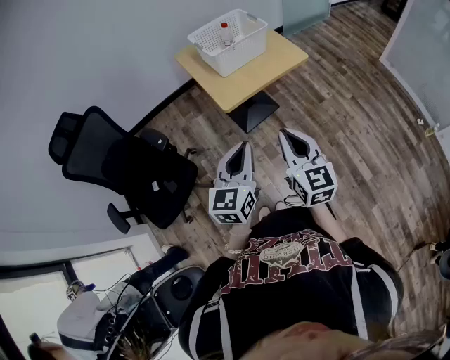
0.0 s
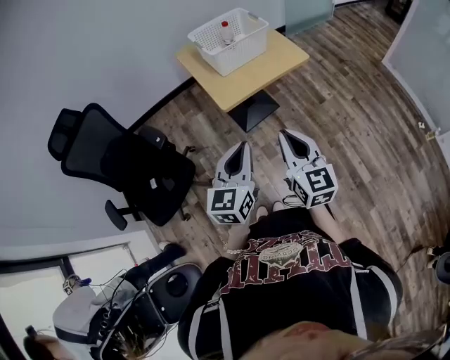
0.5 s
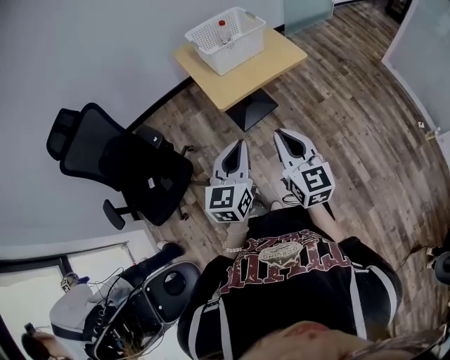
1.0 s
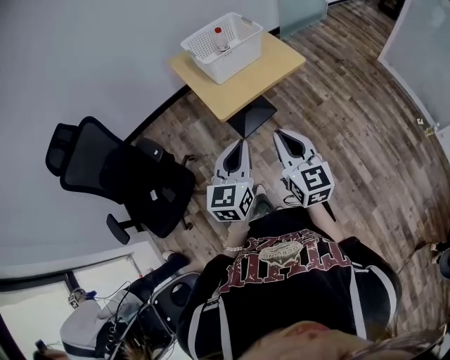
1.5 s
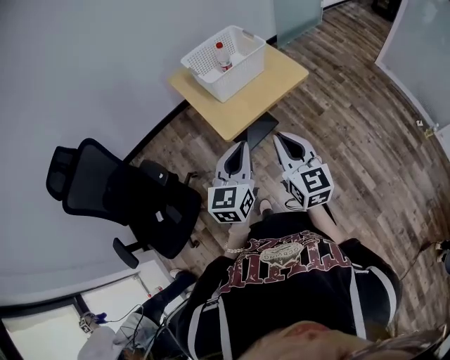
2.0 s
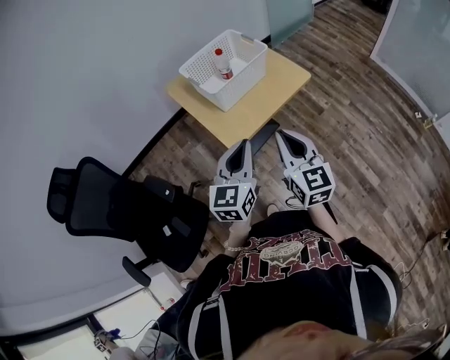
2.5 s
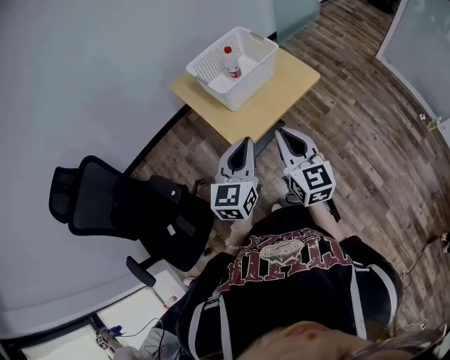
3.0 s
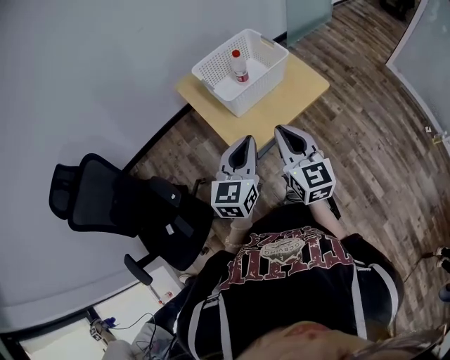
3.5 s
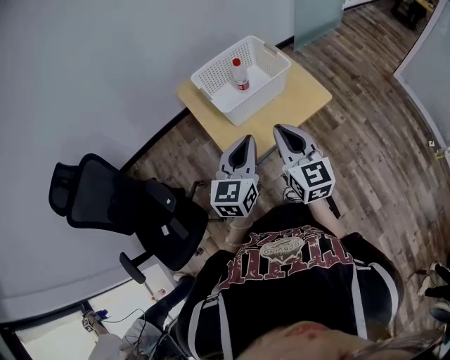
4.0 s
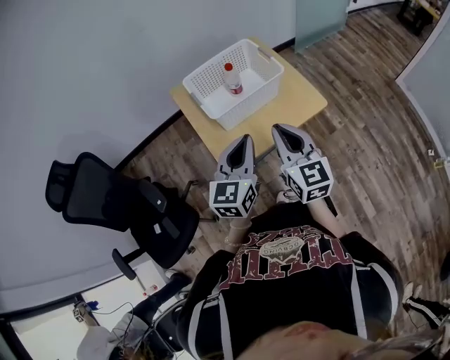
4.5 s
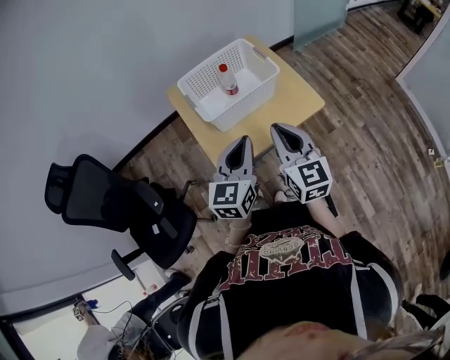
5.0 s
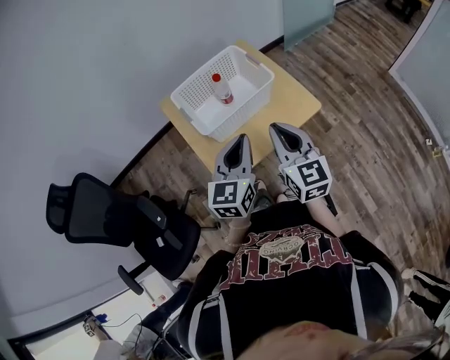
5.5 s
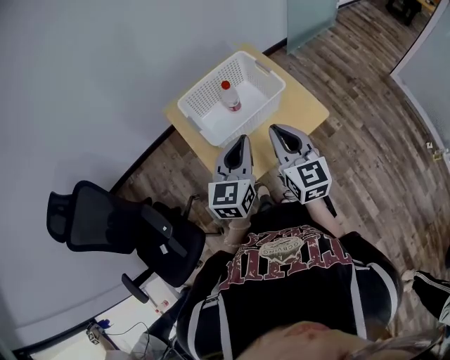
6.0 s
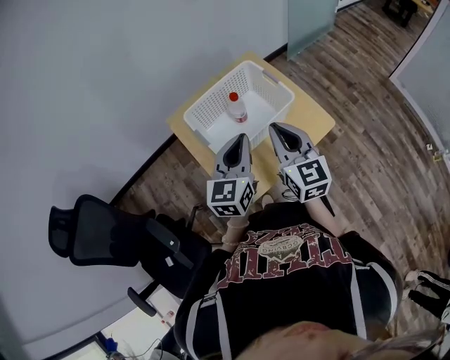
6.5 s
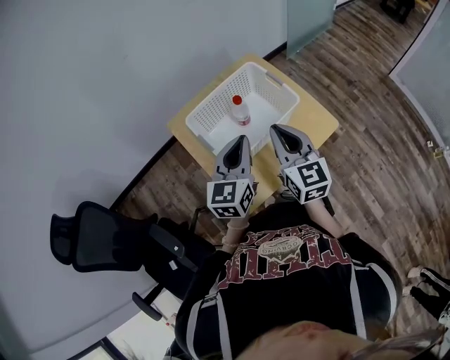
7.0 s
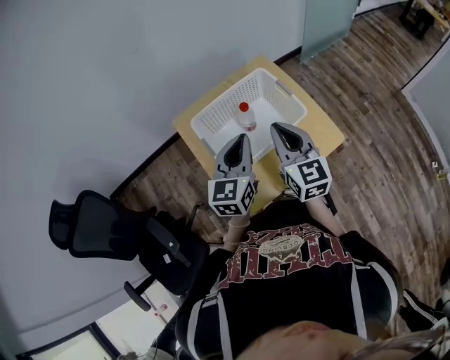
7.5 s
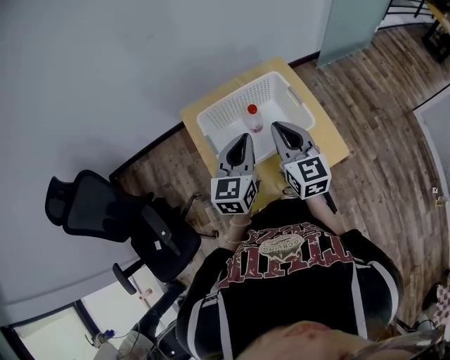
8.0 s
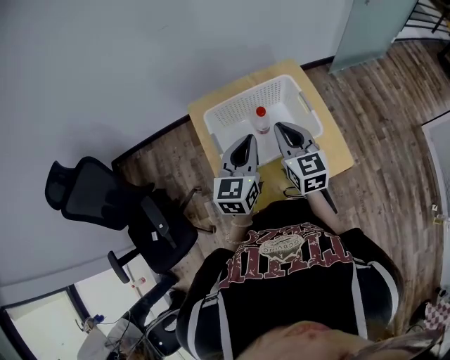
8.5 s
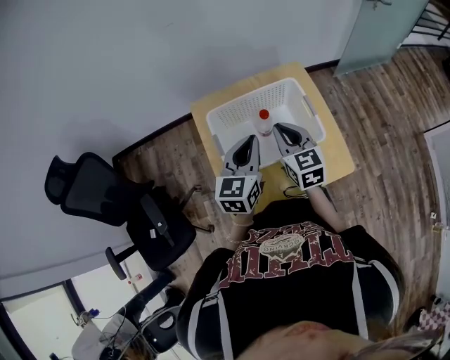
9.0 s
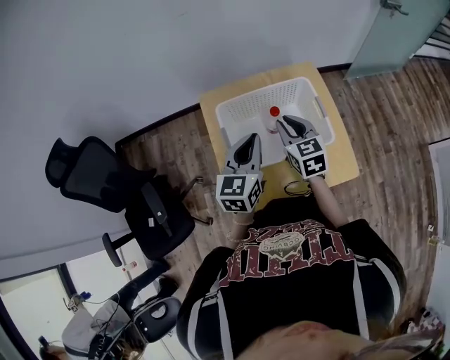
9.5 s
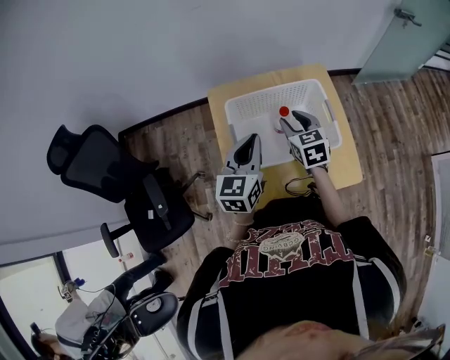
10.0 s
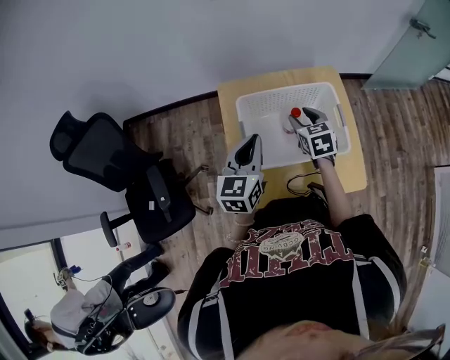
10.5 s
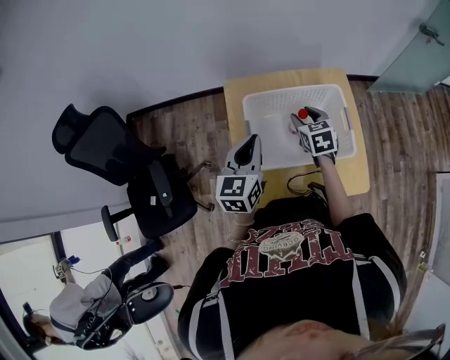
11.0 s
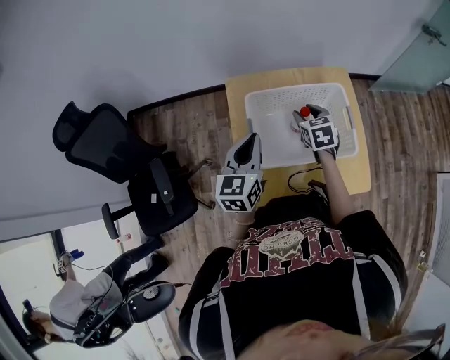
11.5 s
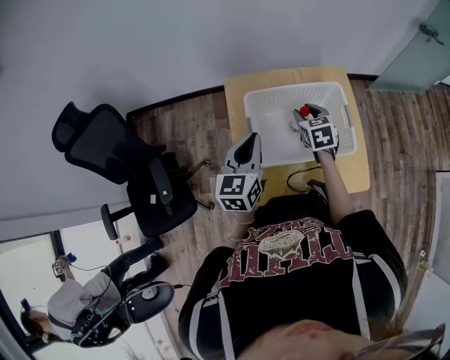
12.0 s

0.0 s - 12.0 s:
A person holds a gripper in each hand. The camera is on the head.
0.0 s - 2.0 s: Both grippers move forward, some 15 cm.
2.0 s - 4.0 s: Both grippers travel together forward, roughly 20 cm.
4.0 s - 6.0 s: Both grippers travel together forward, some 10 cm.
6.0 s - 8.0 s: Both grippers move forward, about 15 cm.
8.0 s - 10.0 s: The left gripper moves to the left, about 5 cm; the right gripper travels downward and forward by some 15 cm, turns by approximately 30 degrees, and opens.
10.0 s - 12.0 s: The right gripper changes place by some 5 cm; the left gripper travels to the left by some 5 cm.

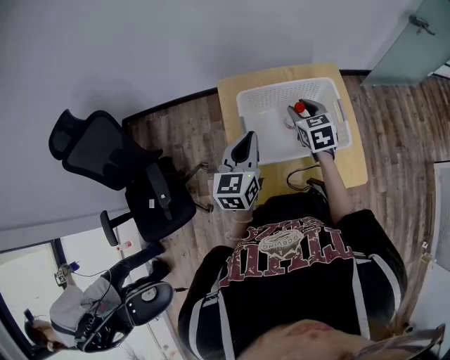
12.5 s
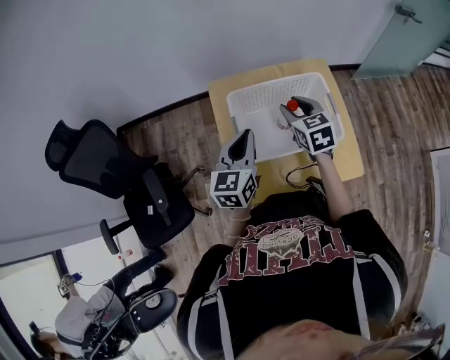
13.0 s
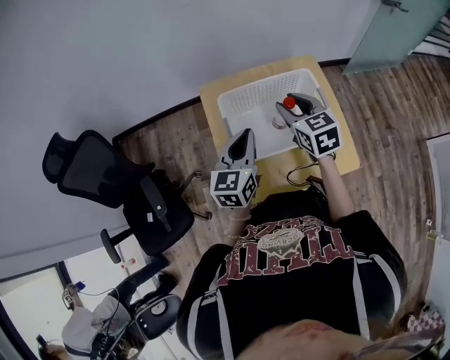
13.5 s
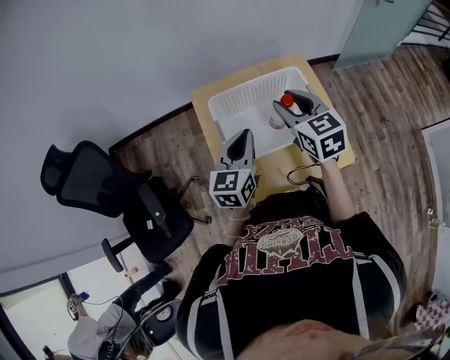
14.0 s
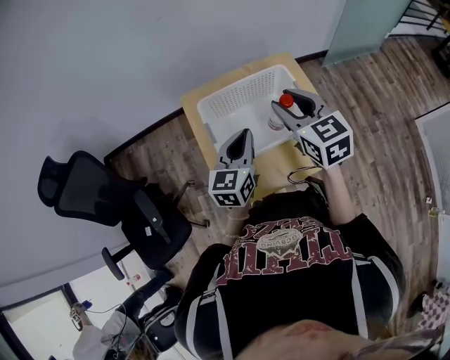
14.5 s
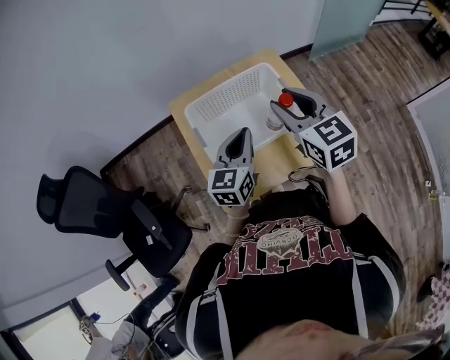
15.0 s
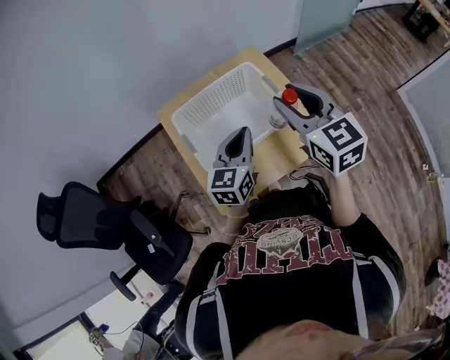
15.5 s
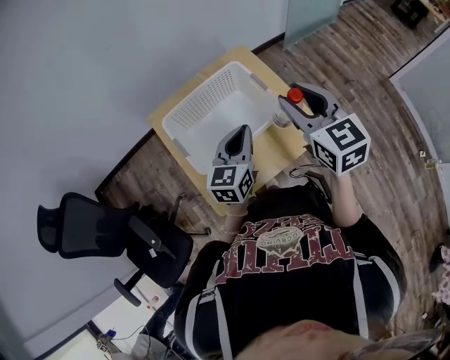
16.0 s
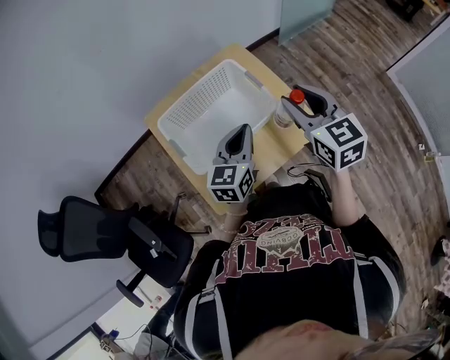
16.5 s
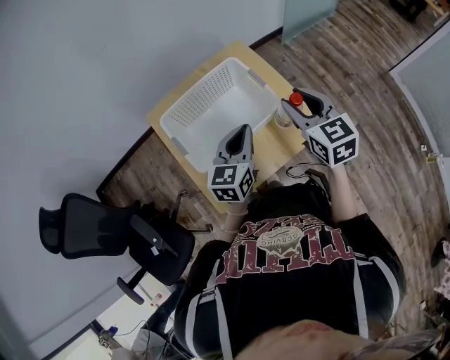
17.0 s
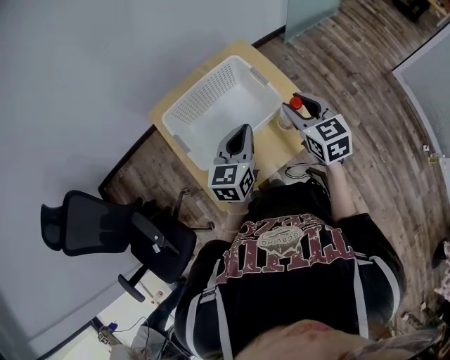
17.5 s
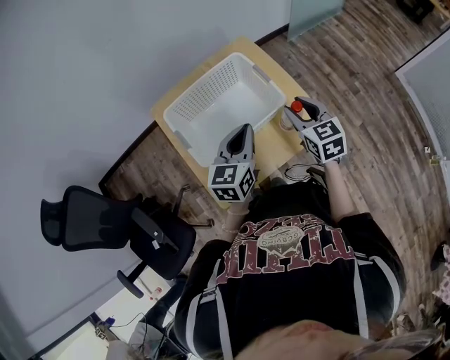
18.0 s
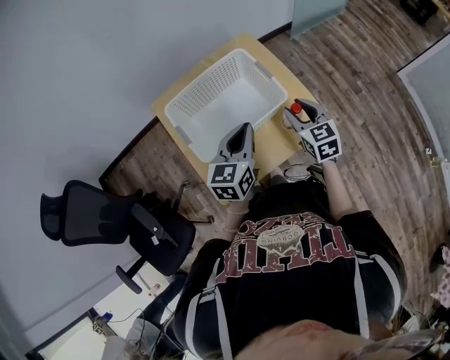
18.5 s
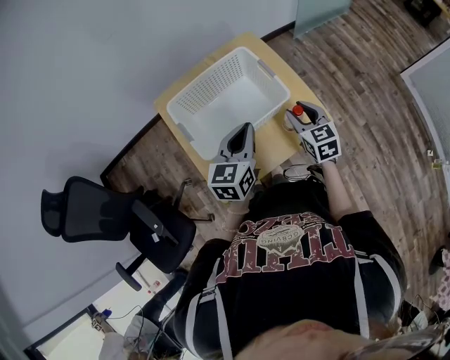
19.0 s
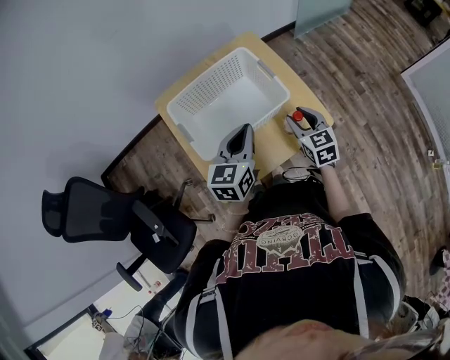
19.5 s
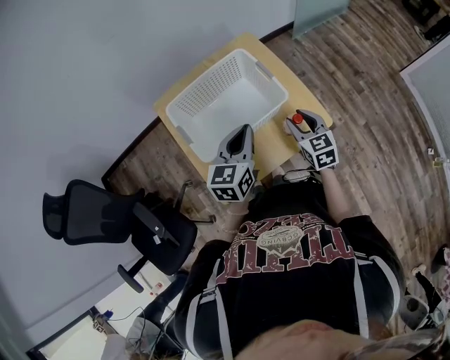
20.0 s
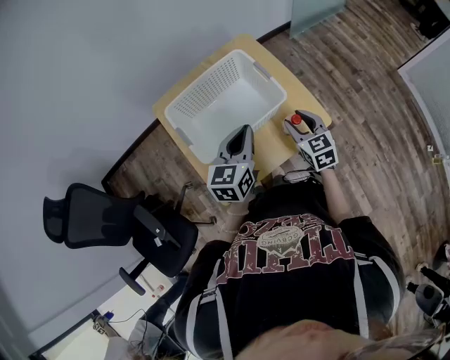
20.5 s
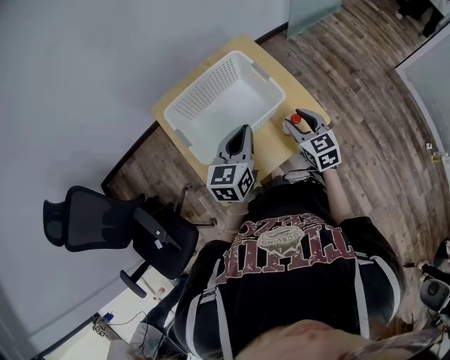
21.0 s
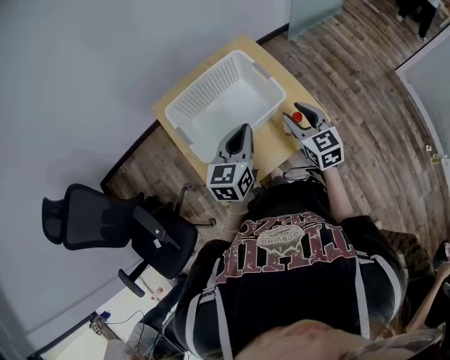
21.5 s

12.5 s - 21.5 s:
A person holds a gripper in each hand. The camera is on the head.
12.5 s - 14.5 s: The left gripper moves to the right, approximately 10 cm. The right gripper shifts roughly 20 cm upward and backward.
14.5 s - 17.0 s: Both grippers travel together to the right, roughly 15 cm.
17.0 s - 19.5 s: The right gripper goes about 15 cm downward.
19.5 s - 21.5 s: The right gripper heads upward, covering some 5 cm.

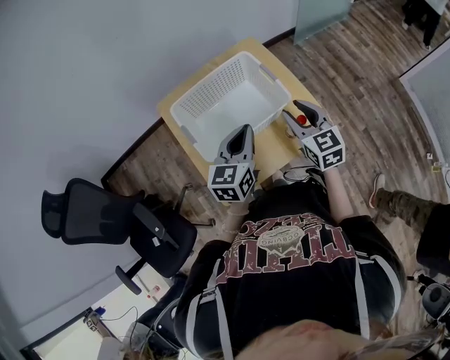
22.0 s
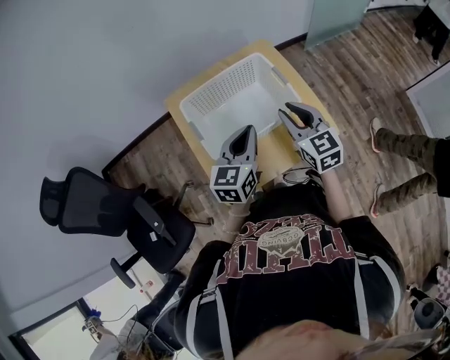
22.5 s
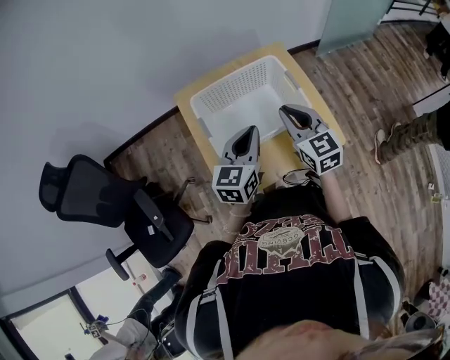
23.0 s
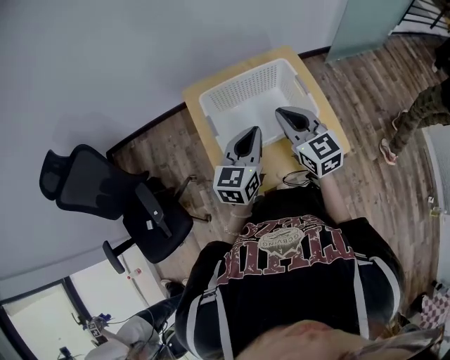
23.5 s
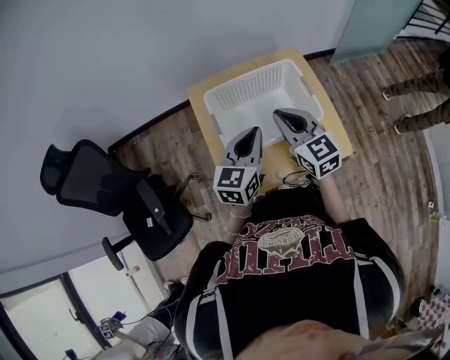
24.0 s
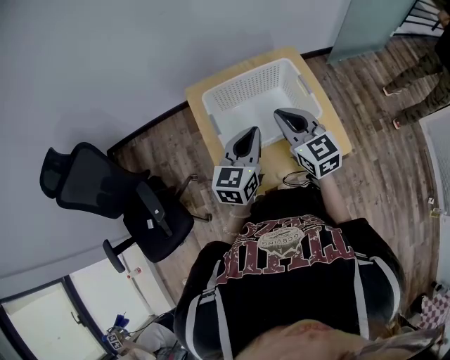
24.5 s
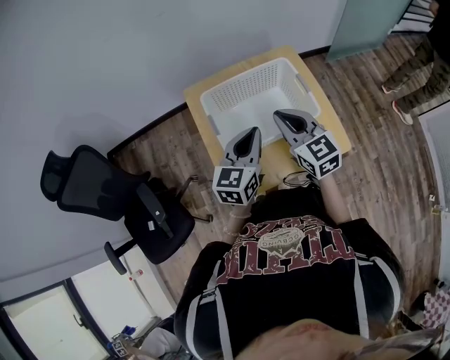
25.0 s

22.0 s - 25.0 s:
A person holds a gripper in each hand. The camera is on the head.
22.0 s - 23.5 s: The left gripper is displaced to the left by approximately 5 cm, while the right gripper is displaced to the left by about 10 cm, and closes up.
23.5 s - 25.0 s: There are only small adjustments of the grippers.

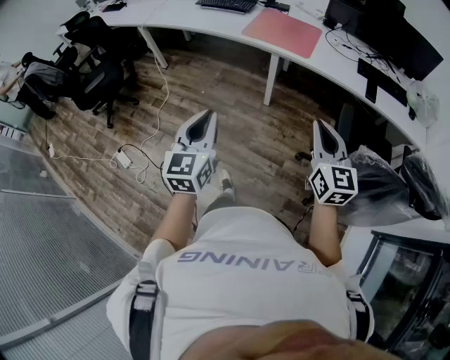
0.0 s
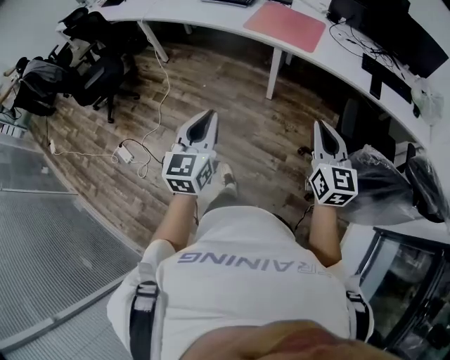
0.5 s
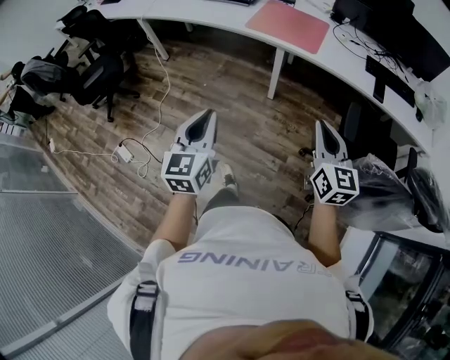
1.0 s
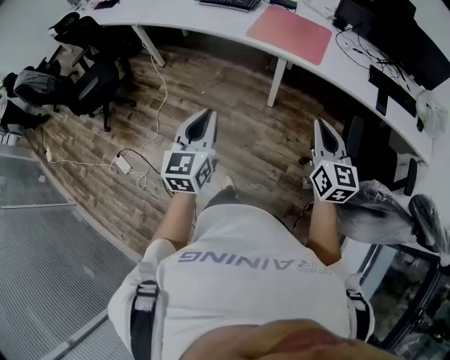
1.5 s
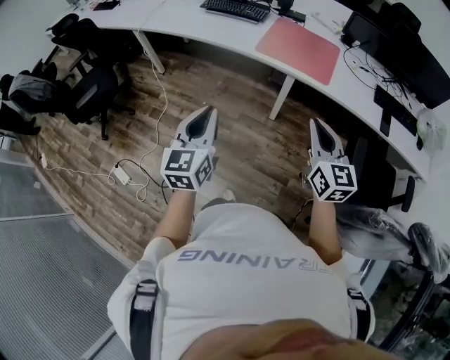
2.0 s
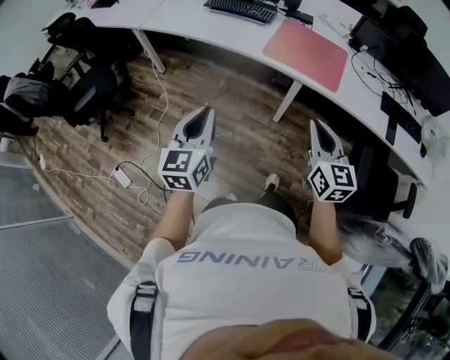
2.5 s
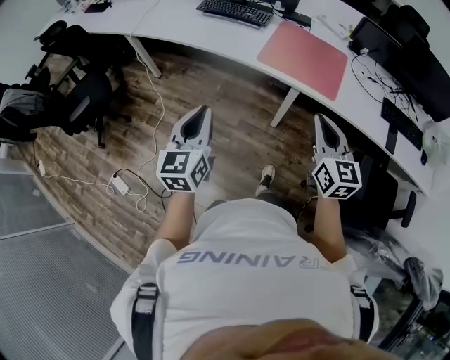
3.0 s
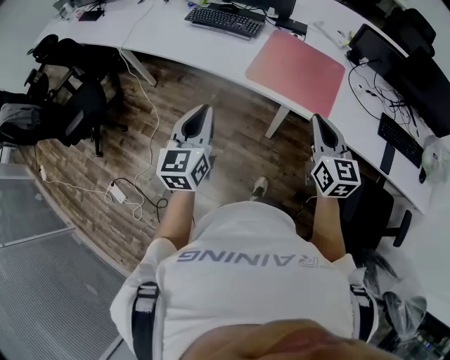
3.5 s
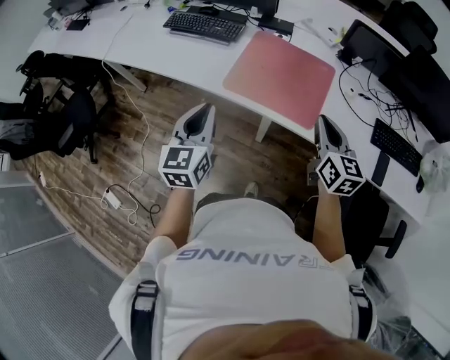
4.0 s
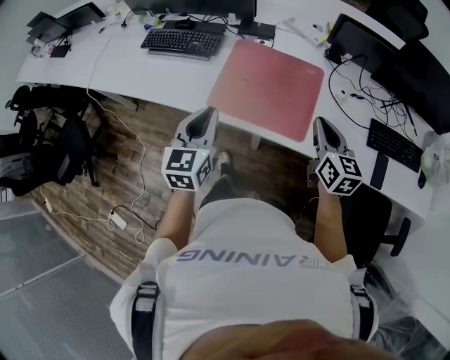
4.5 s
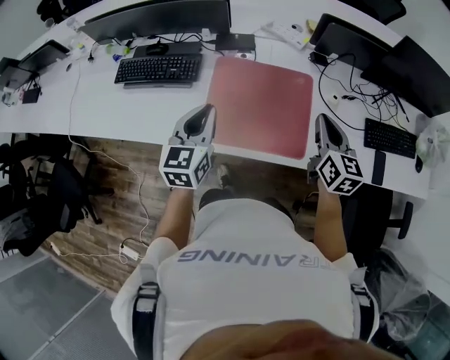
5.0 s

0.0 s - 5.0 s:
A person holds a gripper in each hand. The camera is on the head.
0.0 s - 2.5 s: The two grippers go about 30 cm forward and to the left.
2.5 s - 5.0 s: The pair of grippers is taken forward and to the right, about 60 cm. The right gripper turns by about 30 degrees. Meanwhile the left gripper rotates approximately 20 degrees.
